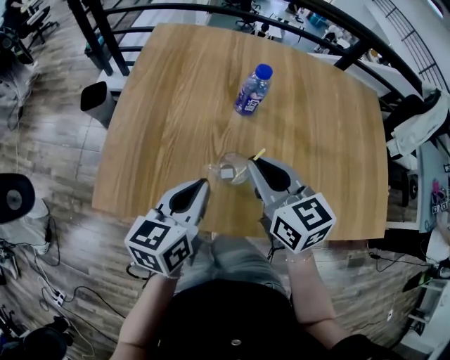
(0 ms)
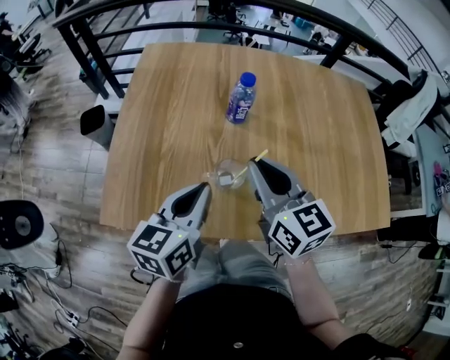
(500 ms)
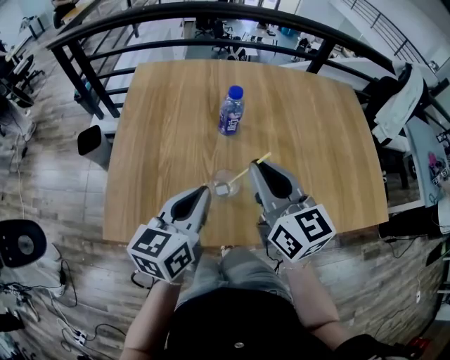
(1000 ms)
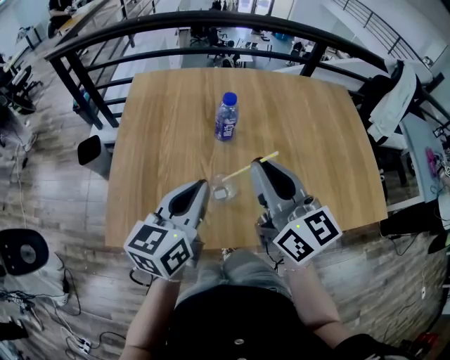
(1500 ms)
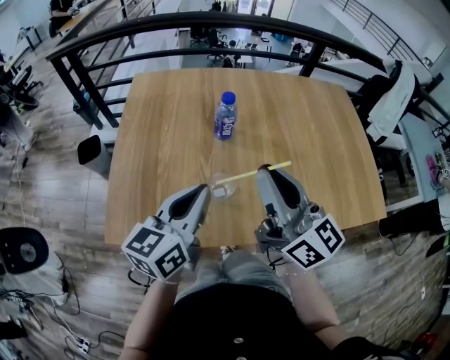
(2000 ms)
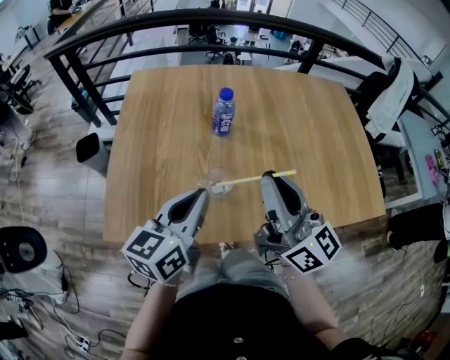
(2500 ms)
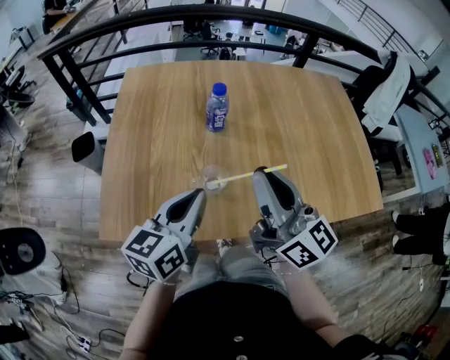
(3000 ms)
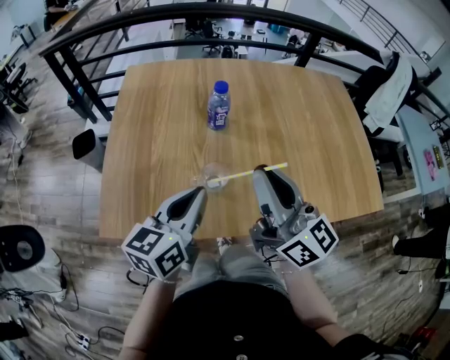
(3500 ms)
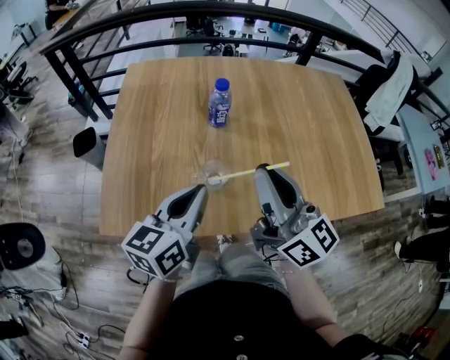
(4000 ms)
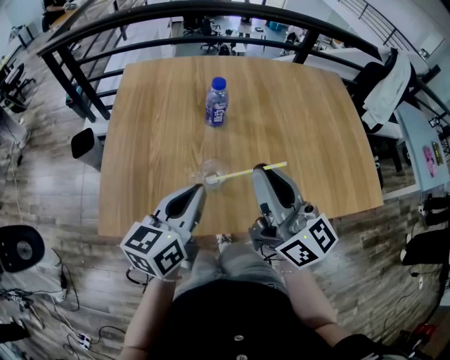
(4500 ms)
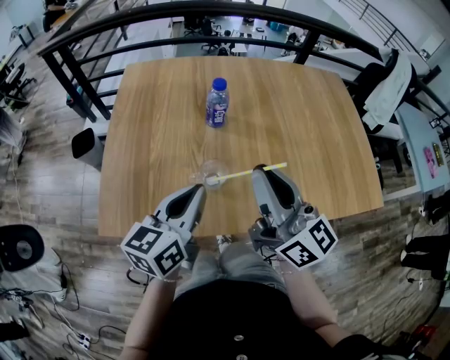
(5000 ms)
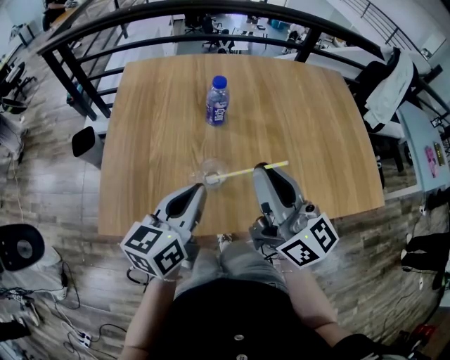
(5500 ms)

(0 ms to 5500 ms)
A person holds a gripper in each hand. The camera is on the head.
0 ms - 2000 ms: The left gripper shifts approximately 10 cm upward. The right gripper shifts some 15 cm upward and backward, and tilts its fingers roughly 30 degrees upward.
2000 ms - 3500 ms: The grippers make only small movements.
3500 ms - 5500 ms: Neither gripper changes place.

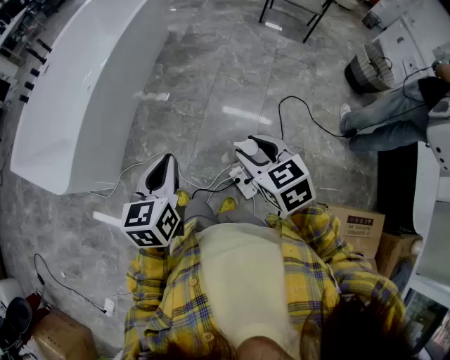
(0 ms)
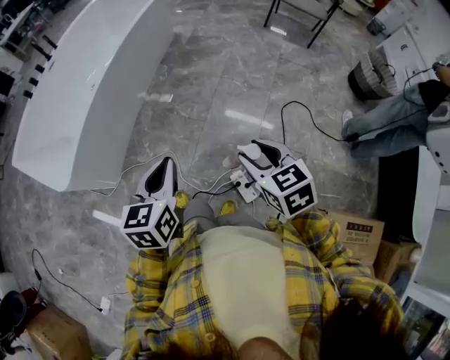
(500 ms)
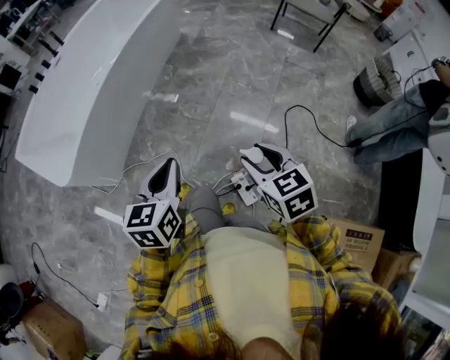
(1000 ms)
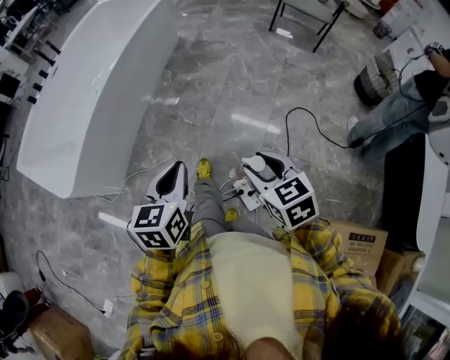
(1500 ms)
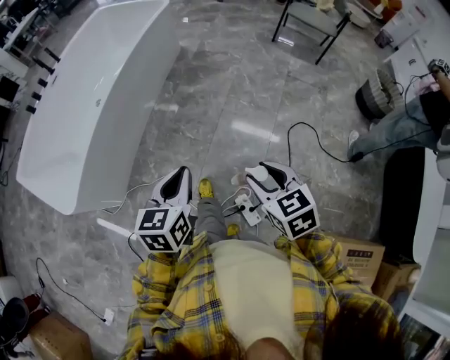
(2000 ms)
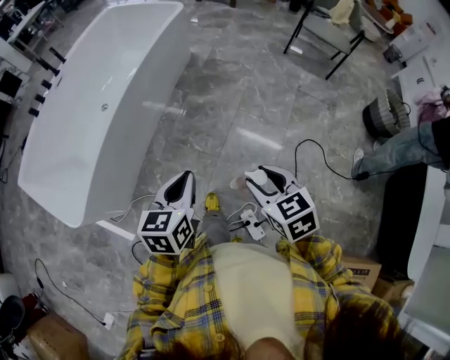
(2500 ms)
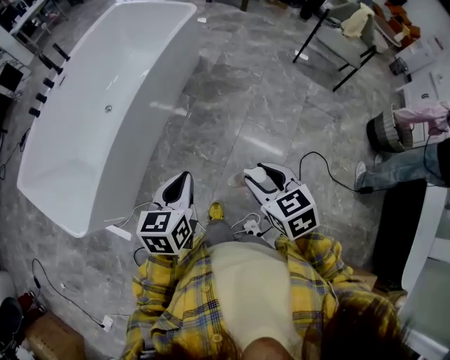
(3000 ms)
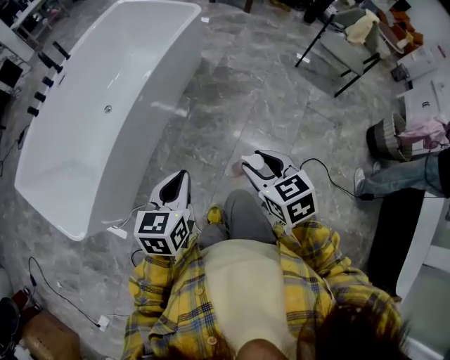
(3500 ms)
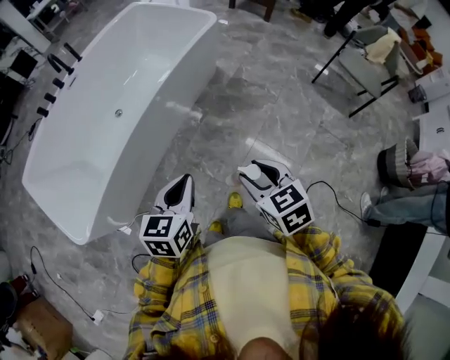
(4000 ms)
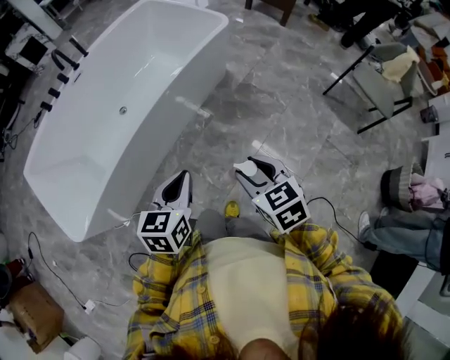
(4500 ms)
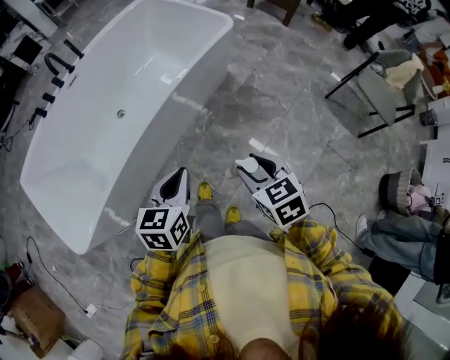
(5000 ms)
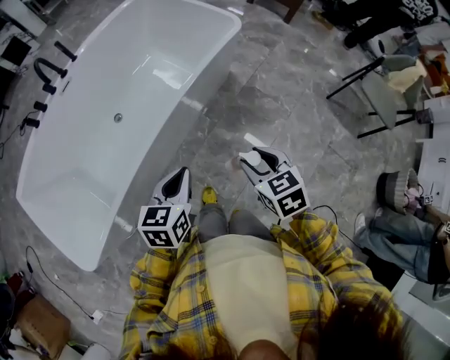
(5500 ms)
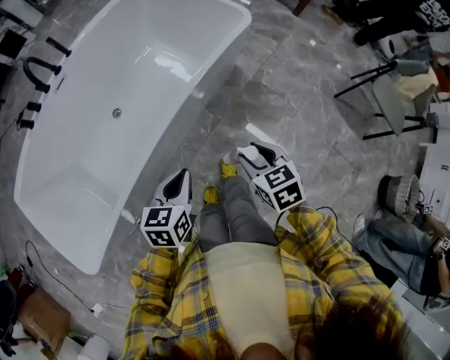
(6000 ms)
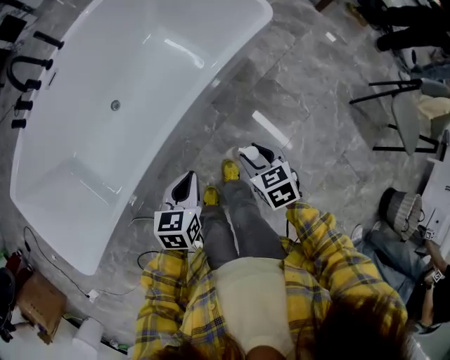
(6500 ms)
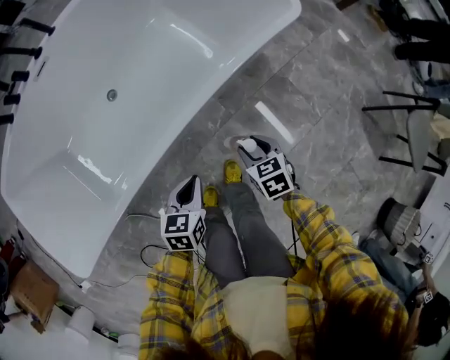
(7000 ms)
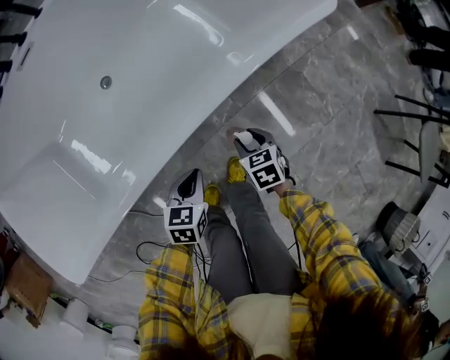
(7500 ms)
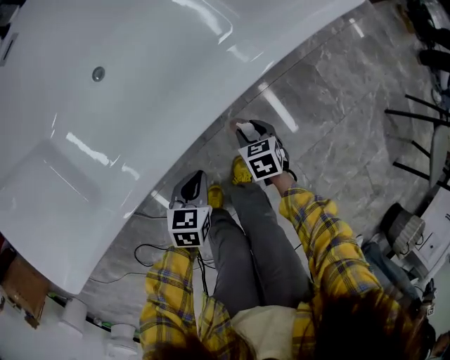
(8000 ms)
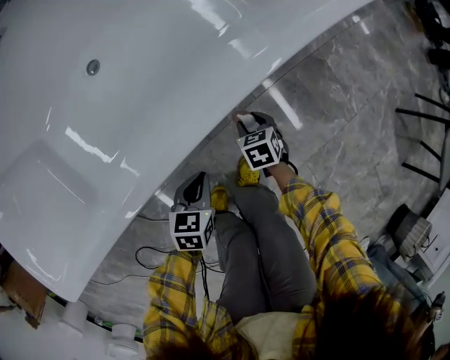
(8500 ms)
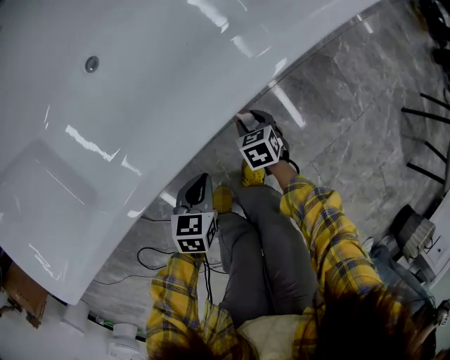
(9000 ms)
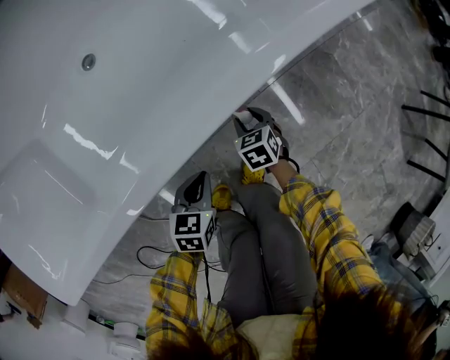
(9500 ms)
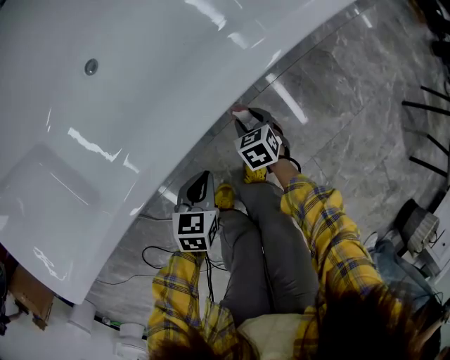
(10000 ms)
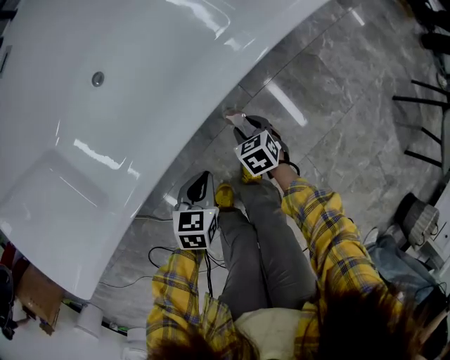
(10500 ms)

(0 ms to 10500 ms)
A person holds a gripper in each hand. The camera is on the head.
0 ms - 2000 ms: The two grippers go about 10 cm forward.
2000 ms - 4000 ms: The two grippers go roughly 30 cm forward.
4000 ms - 6500 ms: The two grippers go roughly 40 cm forward and downward.
6500 ms - 8500 ms: Both grippers move downward, roughly 35 cm.
8500 ms - 10500 ms: The grippers move only a little.

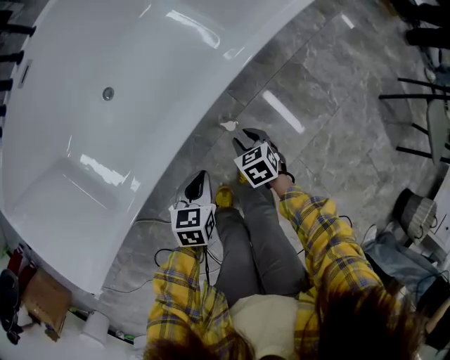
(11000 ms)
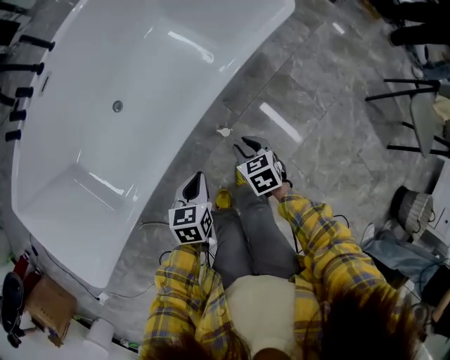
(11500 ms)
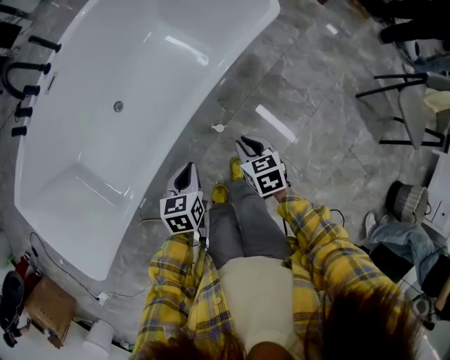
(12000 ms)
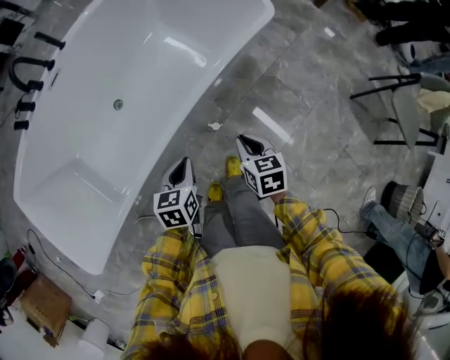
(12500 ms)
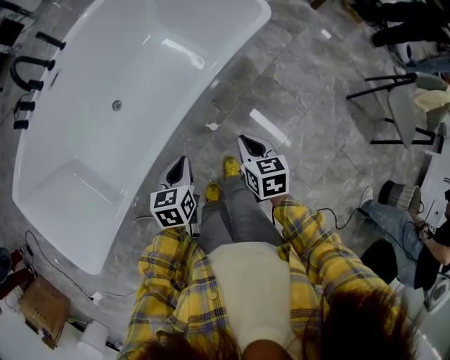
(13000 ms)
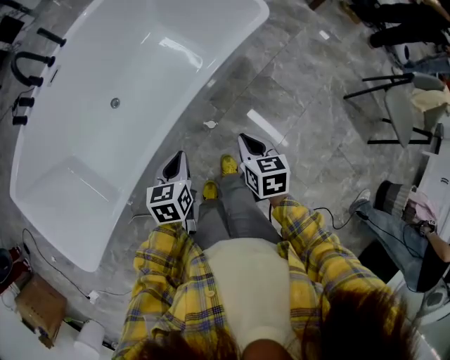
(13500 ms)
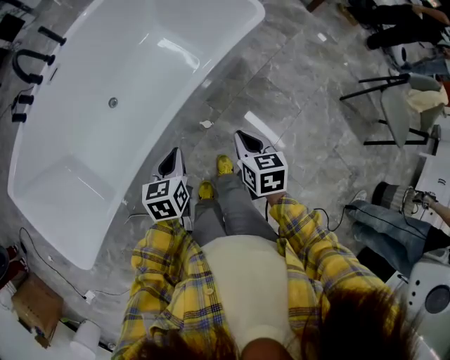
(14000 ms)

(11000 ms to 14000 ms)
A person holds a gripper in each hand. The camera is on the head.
11000 ms - 12500 ms: The left gripper goes some 15 cm upward; the right gripper shifts some 25 cm upward, swivels roughly 20 degrees, and closes.
12500 ms - 14000 ms: The right gripper moves upward, about 5 cm.

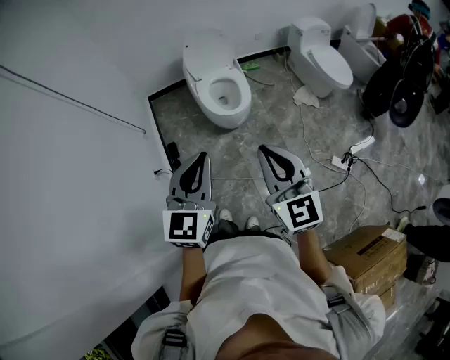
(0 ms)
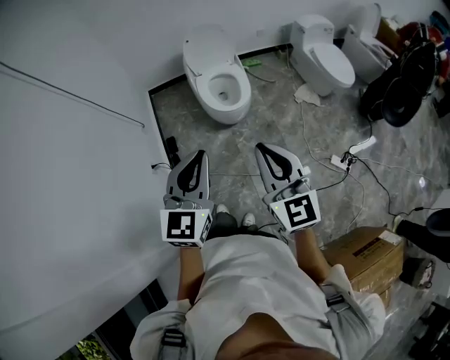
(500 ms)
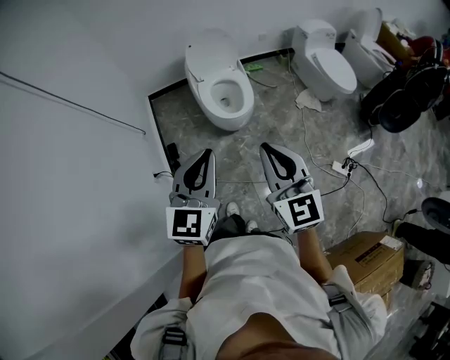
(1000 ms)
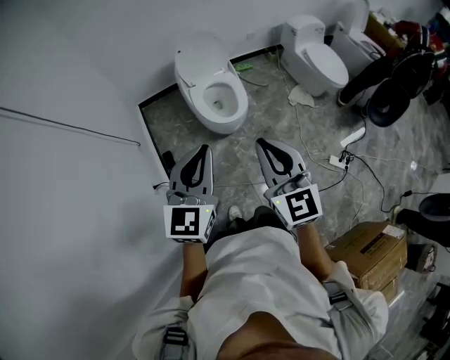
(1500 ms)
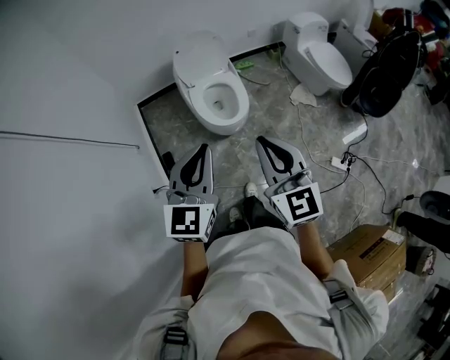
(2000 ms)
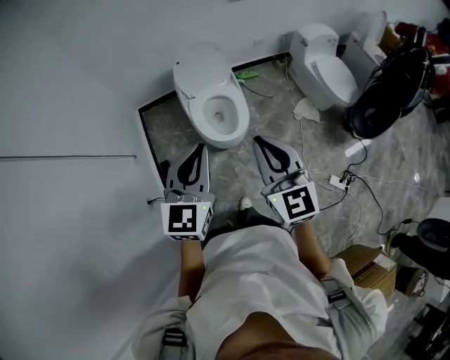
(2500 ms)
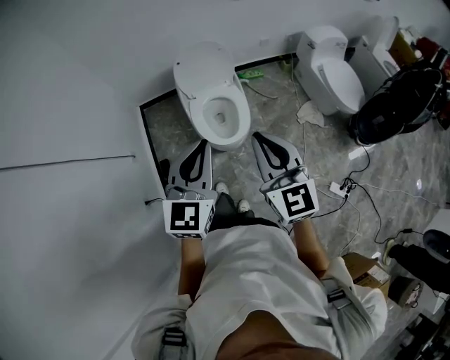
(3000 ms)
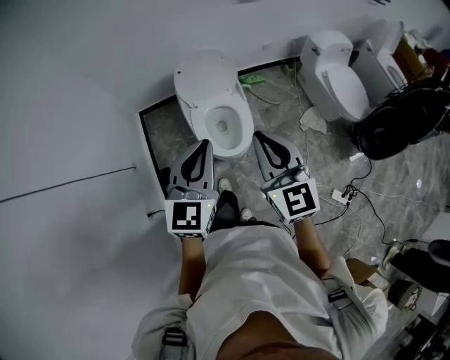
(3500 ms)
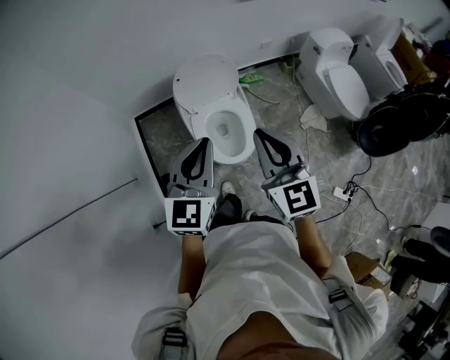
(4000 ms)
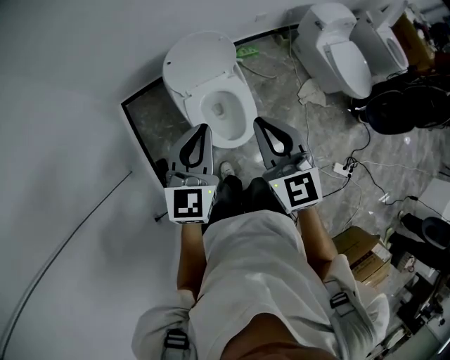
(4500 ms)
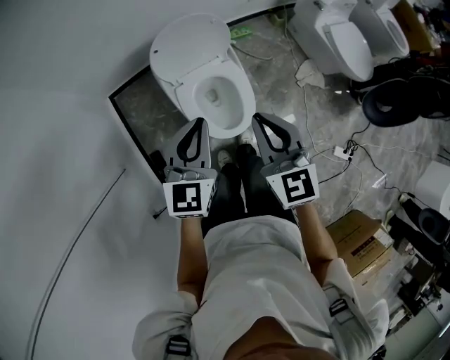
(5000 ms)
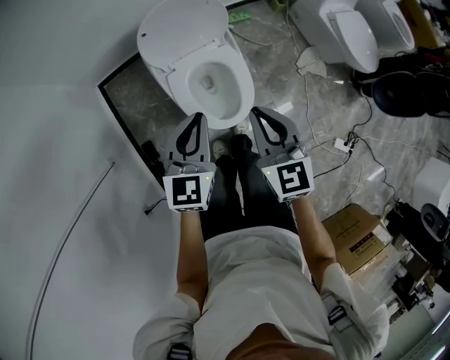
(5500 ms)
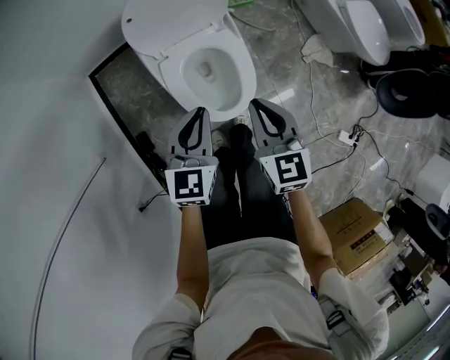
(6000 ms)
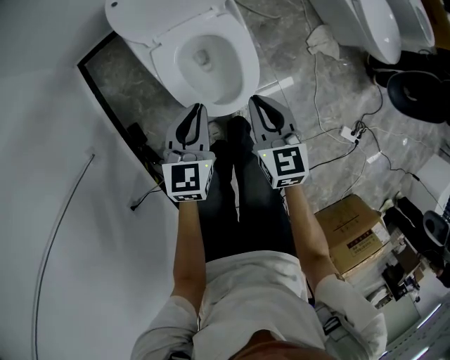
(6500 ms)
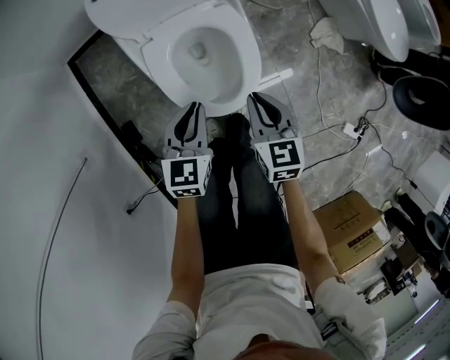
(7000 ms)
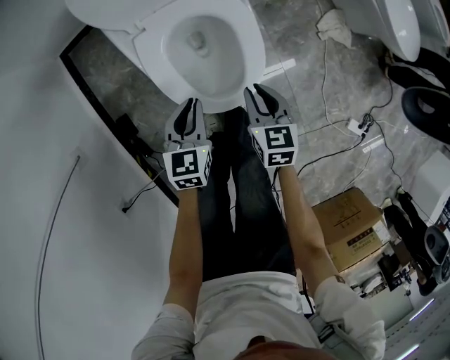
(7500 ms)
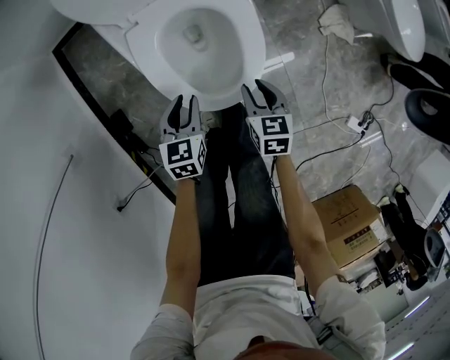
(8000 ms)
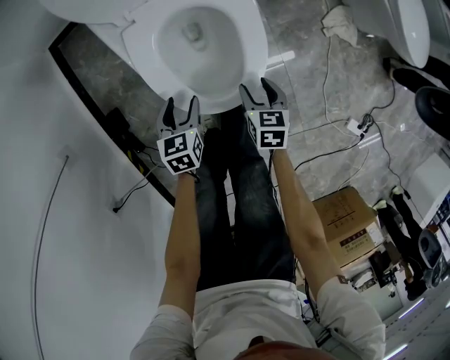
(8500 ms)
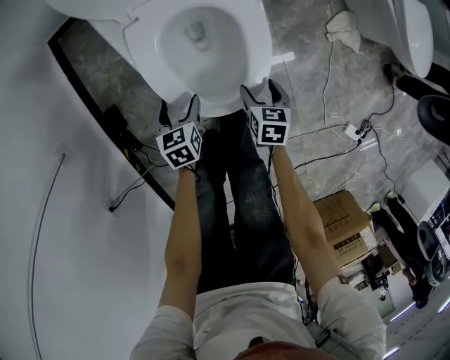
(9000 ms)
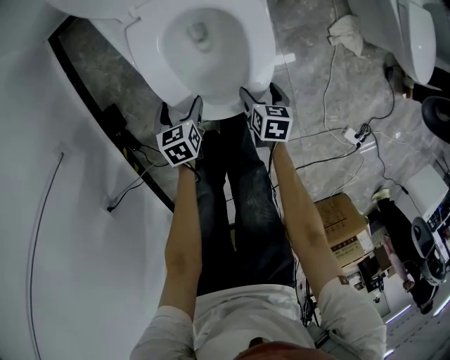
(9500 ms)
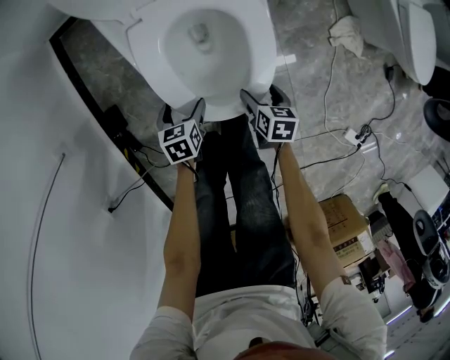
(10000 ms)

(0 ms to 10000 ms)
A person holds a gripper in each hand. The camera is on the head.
0 ms - 2000 ms: The grippers both shift forward by some 15 cm.
2000 ms - 4000 ms: The two grippers go about 35 cm forward.
4000 ms - 6000 ms: The two grippers go some 30 cm downward. The right gripper rotates some 20 degrees.
6000 ms - 8000 ms: The grippers both shift downward by some 35 cm. The left gripper changes its angle by roughly 30 degrees. Meanwhile the right gripper turns by roughly 30 degrees.
8000 ms - 10000 ms: The grippers both shift downward by roughly 10 cm. The left gripper swivels some 20 degrees, and opens up. The right gripper opens up.
